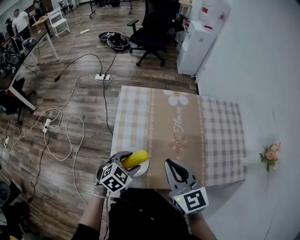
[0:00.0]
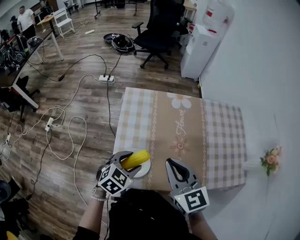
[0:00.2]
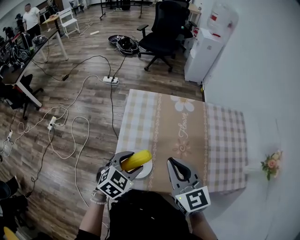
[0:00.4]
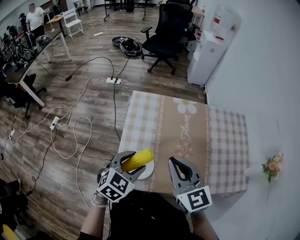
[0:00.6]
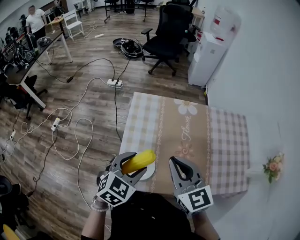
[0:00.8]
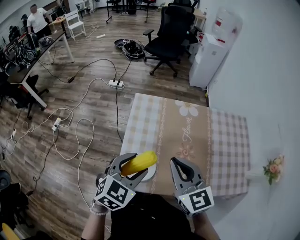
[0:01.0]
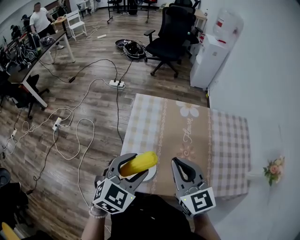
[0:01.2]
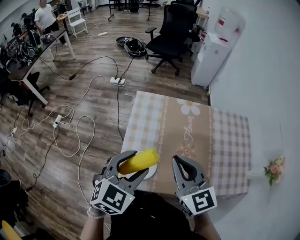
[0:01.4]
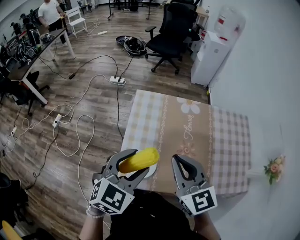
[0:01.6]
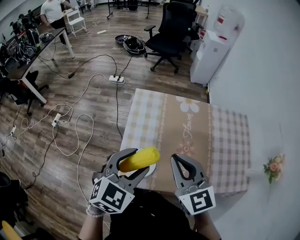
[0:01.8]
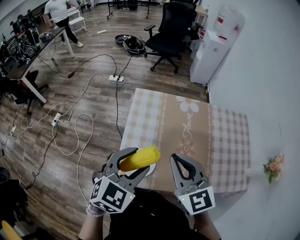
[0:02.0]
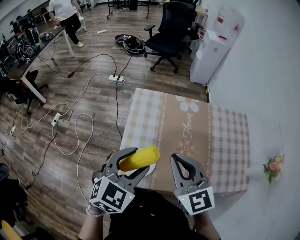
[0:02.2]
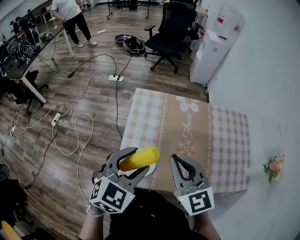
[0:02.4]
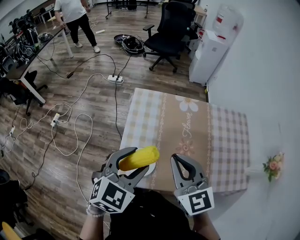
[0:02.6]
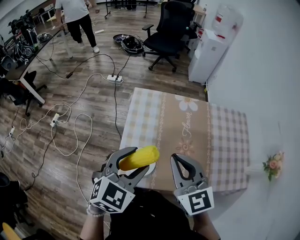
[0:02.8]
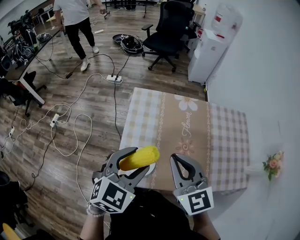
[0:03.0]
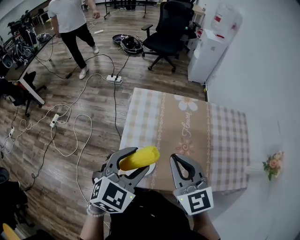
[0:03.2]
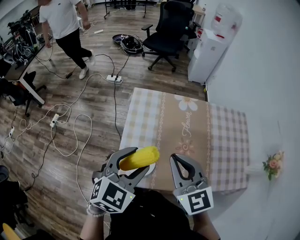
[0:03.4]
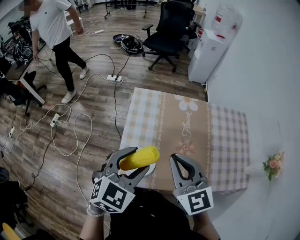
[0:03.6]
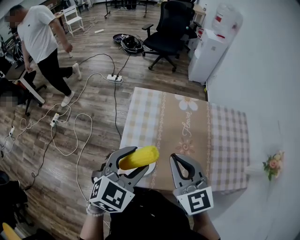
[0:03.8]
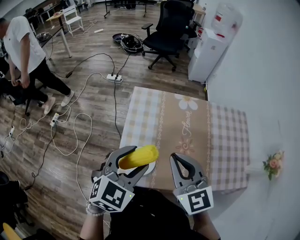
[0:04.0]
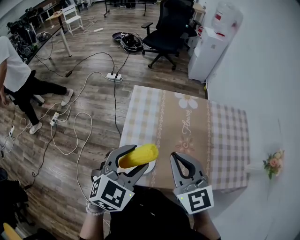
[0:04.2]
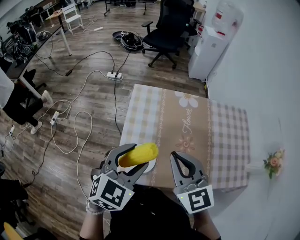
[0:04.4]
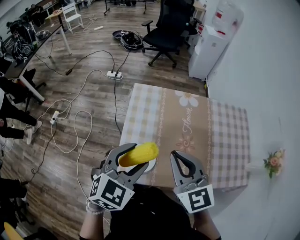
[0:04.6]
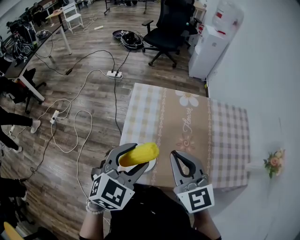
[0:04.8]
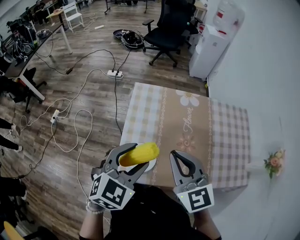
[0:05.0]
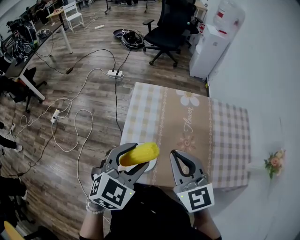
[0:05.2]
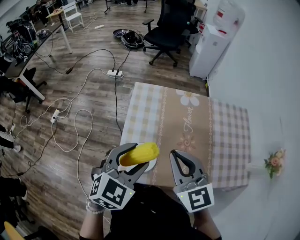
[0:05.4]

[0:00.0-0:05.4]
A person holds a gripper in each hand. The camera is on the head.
0:00.0 to 0:01.4: The left gripper moves upward, about 20 cm, and changes its angle by some 20 degrees. The right gripper ends up roughly 5 cm from where it was.
0:01.4 to 0:02.8: There are only small adjustments of the grippers.
0:02.8 to 0:05.4: Both grippers stay about where they are.

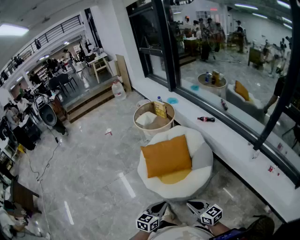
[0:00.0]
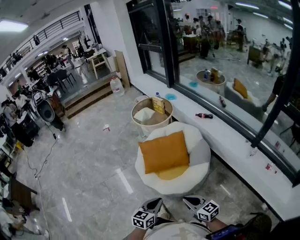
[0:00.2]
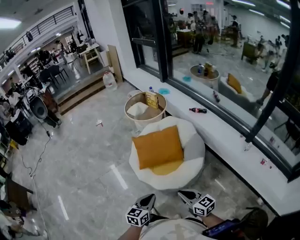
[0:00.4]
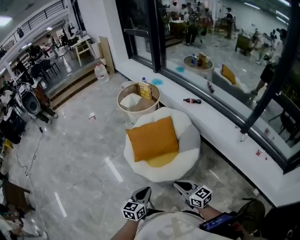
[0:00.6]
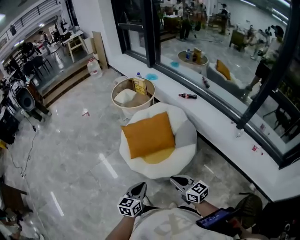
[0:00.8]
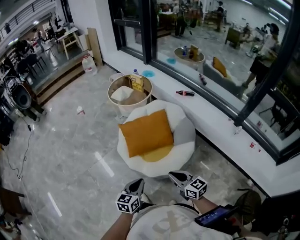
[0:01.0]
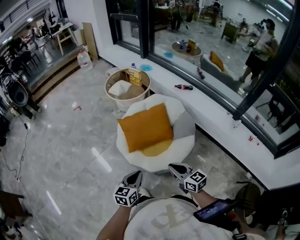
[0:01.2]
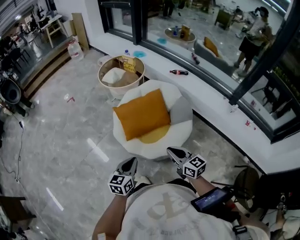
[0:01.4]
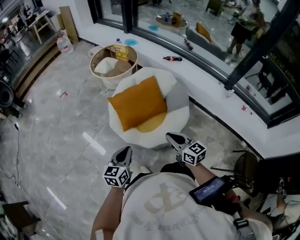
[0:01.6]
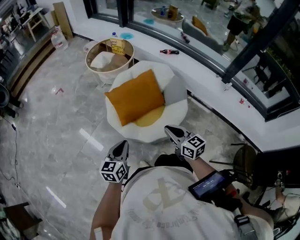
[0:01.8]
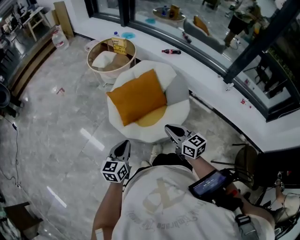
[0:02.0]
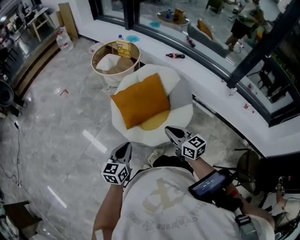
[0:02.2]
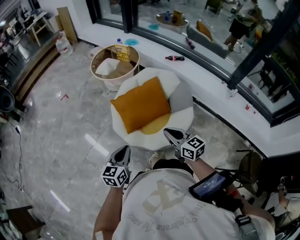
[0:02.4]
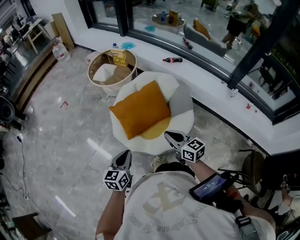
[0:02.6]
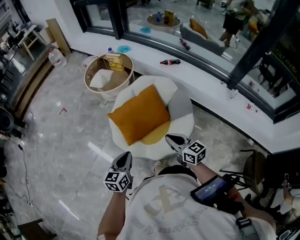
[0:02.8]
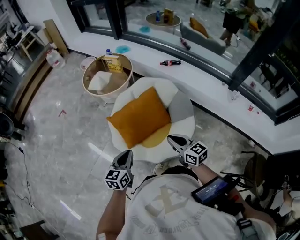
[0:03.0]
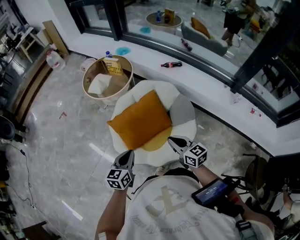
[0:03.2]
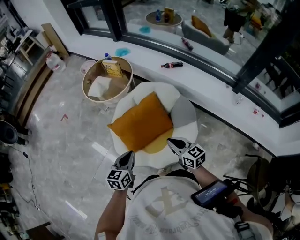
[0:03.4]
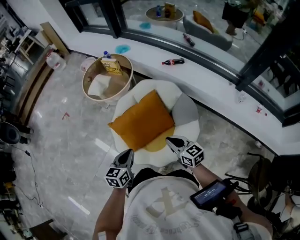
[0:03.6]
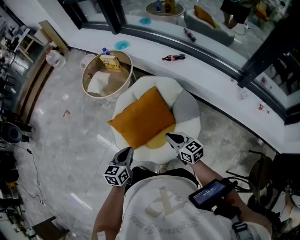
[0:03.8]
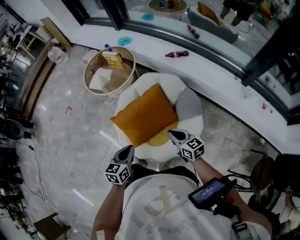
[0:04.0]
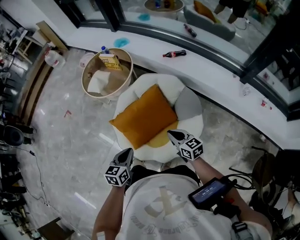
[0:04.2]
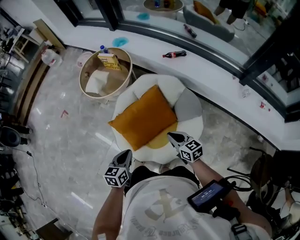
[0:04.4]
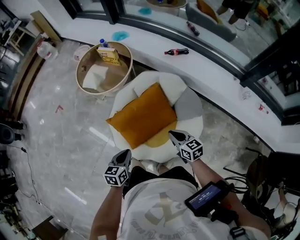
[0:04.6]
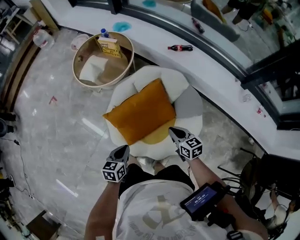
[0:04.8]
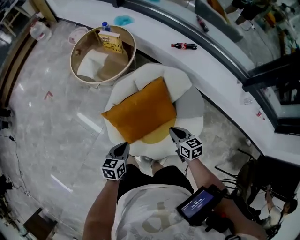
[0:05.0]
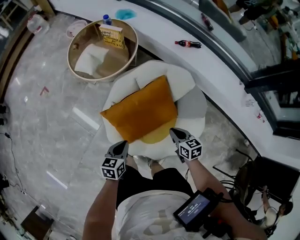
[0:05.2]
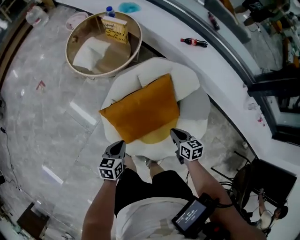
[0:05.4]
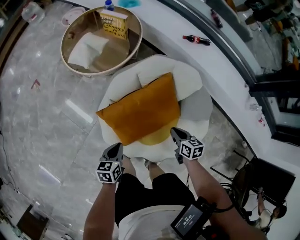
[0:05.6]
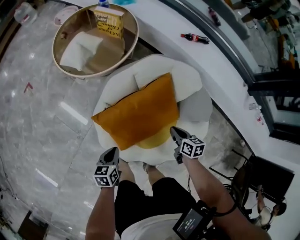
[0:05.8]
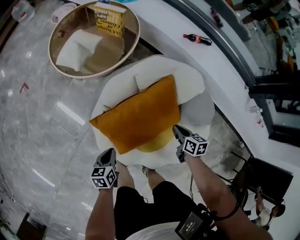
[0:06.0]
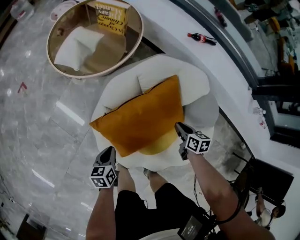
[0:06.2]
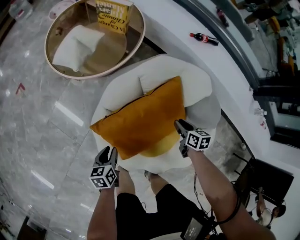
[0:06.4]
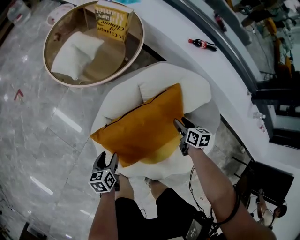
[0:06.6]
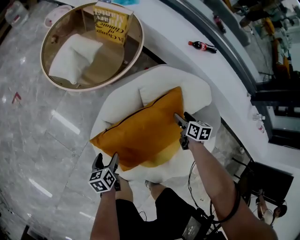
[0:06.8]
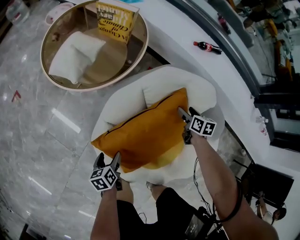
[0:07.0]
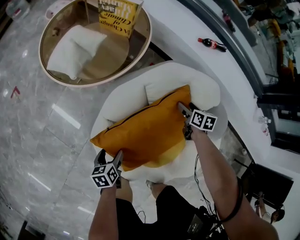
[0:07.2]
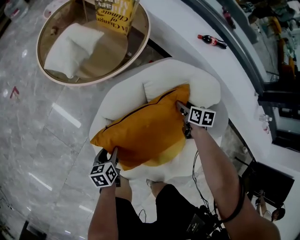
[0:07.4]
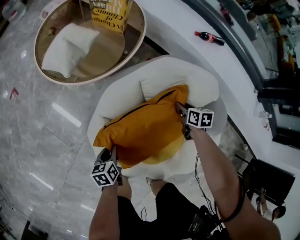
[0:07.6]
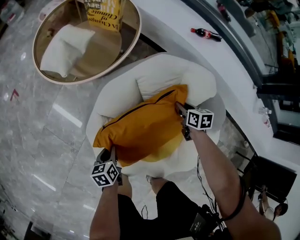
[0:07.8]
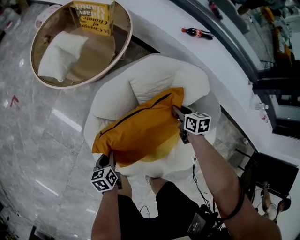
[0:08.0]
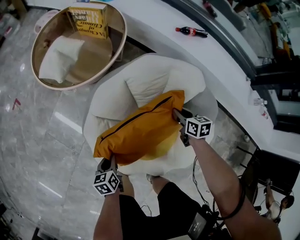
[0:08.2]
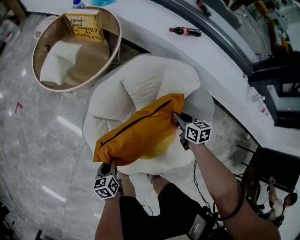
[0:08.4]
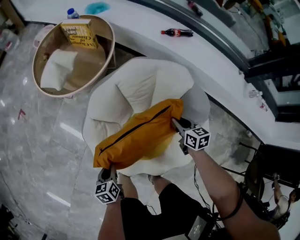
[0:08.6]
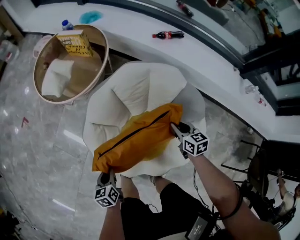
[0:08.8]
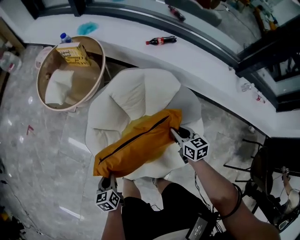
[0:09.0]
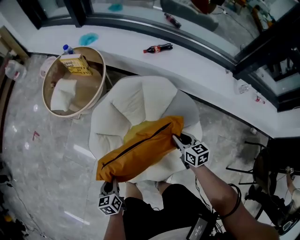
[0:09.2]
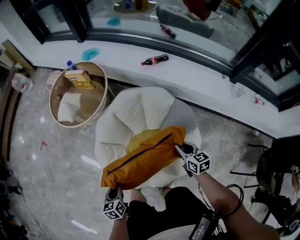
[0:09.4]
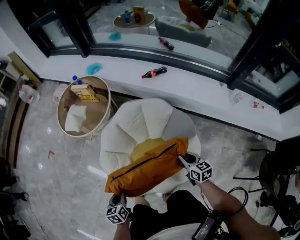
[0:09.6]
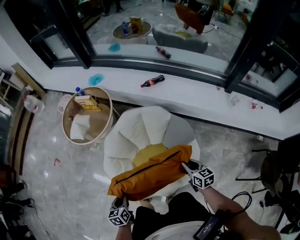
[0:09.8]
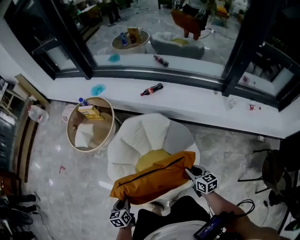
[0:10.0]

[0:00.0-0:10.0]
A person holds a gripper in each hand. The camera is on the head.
0:00.0 to 0:01.4: The right gripper is displaced forward and to the left by some 20 cm. Meanwhile the left gripper moves to the left and forward, approximately 20 cm.
0:01.4 to 0:02.8: The two grippers go some 15 cm forward.
0:02.8 to 0:04.2: The right gripper moves forward and downward, roughly 20 cm, while the left gripper travels forward by approximately 15 cm.
0:04.2 to 0:05.8: The left gripper shifts approximately 35 cm downward, to the left and forward, and changes its angle by some 20 degrees, while the right gripper is displaced downward and forward by some 30 cm, and swivels roughly 30 degrees.
0:05.8 to 0:07.2: The right gripper heads forward and downward, covering about 25 cm, and opens up. The left gripper travels downward and forward by approximately 20 cm, and opens up.
0:07.2 to 0:08.6: The right gripper travels backward and upward by about 20 cm, and closes up; the left gripper shifts about 15 cm upward, backward and to the right, and closes.
0:08.6 to 0:10.0: The left gripper travels upward by roughly 25 cm. Meanwhile the right gripper travels backward, upward and to the right by approximately 30 cm.

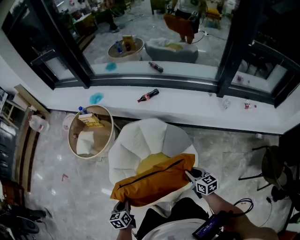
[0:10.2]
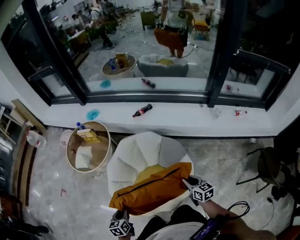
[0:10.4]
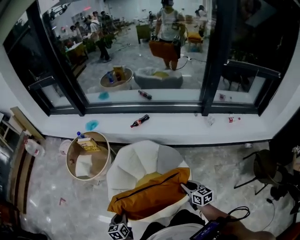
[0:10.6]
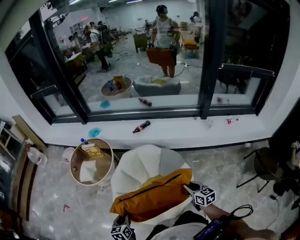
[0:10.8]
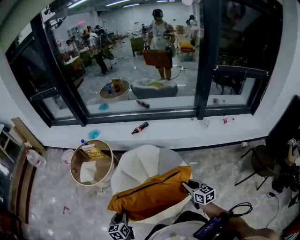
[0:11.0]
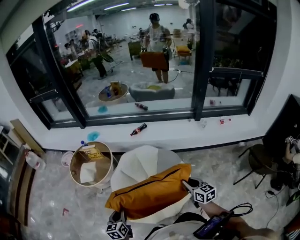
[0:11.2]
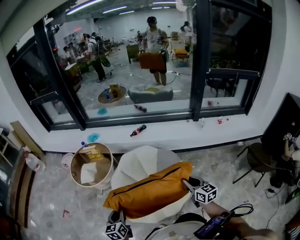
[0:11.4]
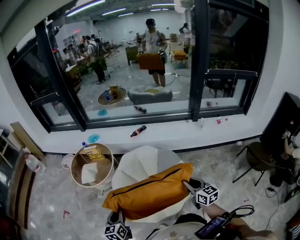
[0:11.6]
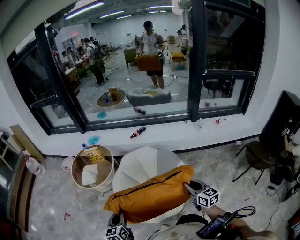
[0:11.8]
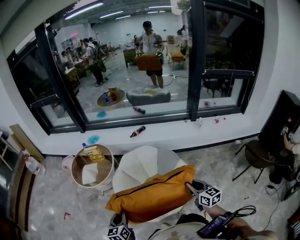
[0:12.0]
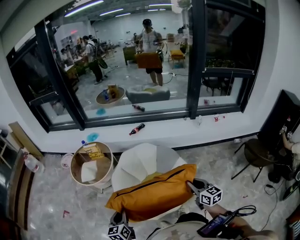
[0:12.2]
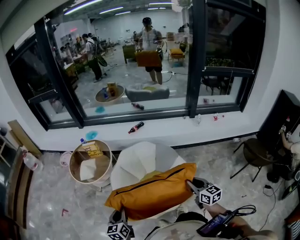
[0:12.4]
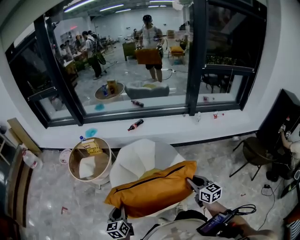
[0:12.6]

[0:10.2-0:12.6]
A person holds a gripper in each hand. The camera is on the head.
0:10.2 to 0:11.4: The right gripper goes approximately 20 cm upward and backward, and swivels some 20 degrees; the left gripper shifts approximately 20 cm upward and to the left, and changes its angle by some 20 degrees.
0:11.4 to 0:12.6: The right gripper shifts roughly 5 cm backward.

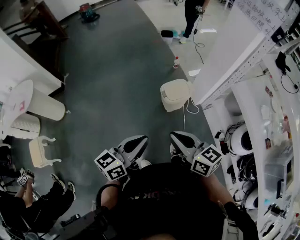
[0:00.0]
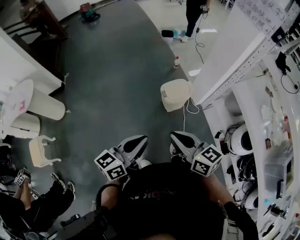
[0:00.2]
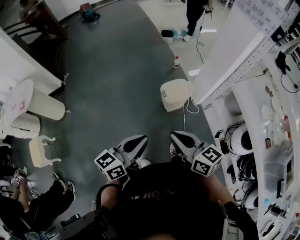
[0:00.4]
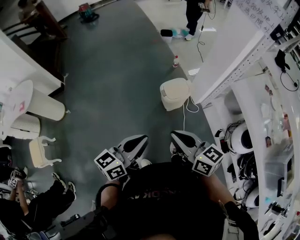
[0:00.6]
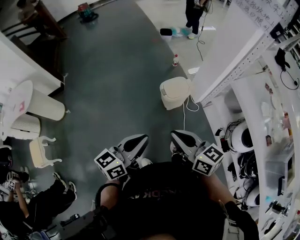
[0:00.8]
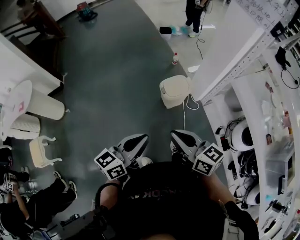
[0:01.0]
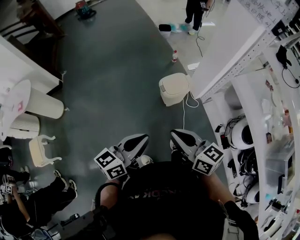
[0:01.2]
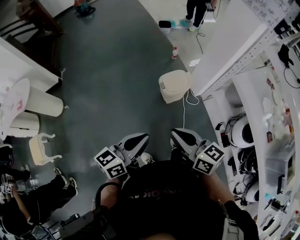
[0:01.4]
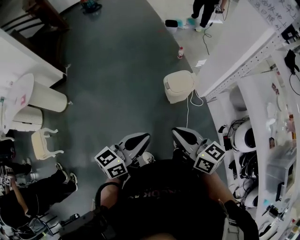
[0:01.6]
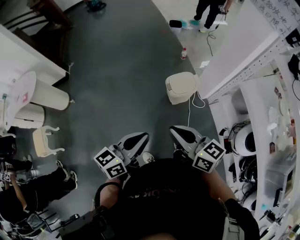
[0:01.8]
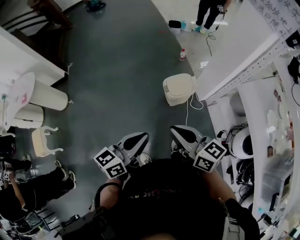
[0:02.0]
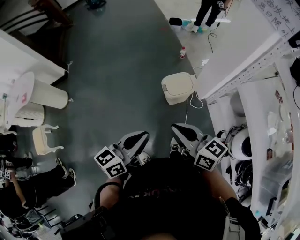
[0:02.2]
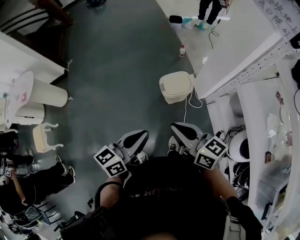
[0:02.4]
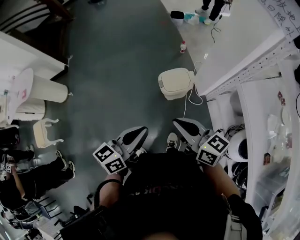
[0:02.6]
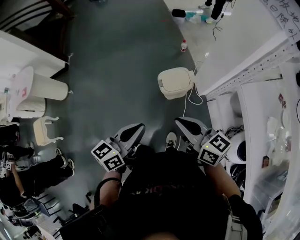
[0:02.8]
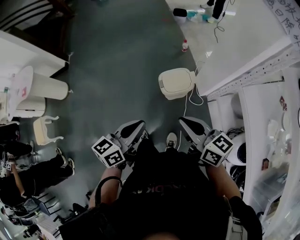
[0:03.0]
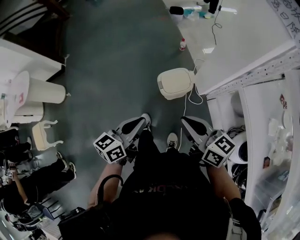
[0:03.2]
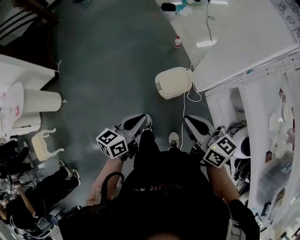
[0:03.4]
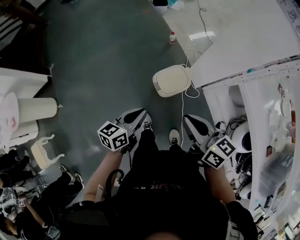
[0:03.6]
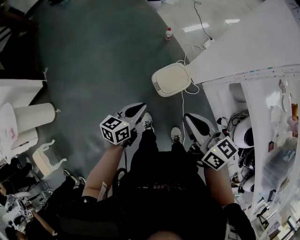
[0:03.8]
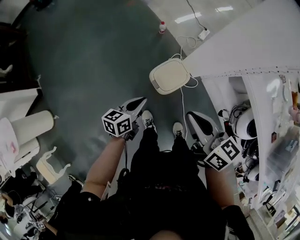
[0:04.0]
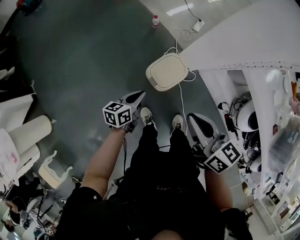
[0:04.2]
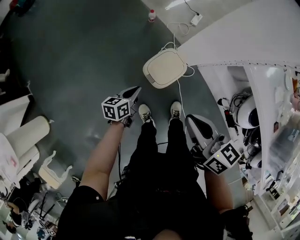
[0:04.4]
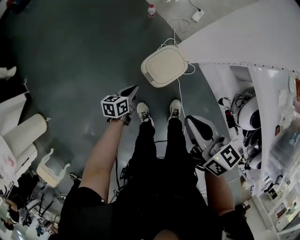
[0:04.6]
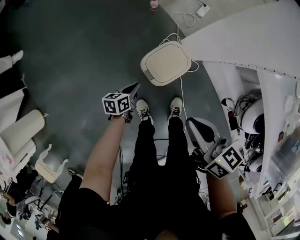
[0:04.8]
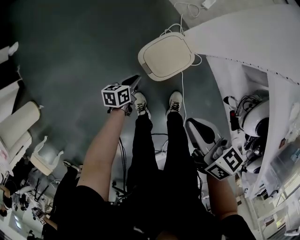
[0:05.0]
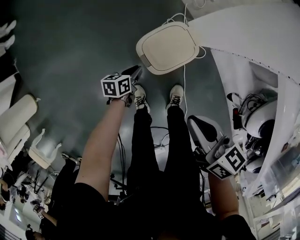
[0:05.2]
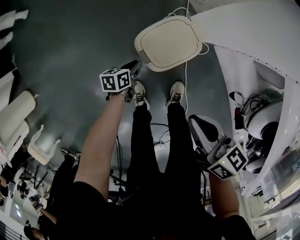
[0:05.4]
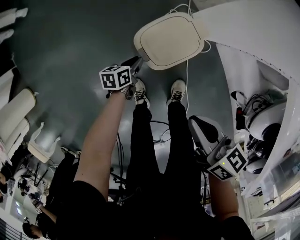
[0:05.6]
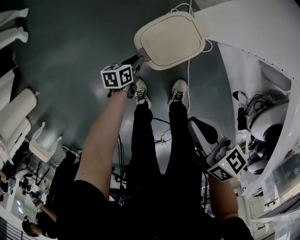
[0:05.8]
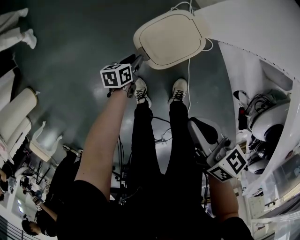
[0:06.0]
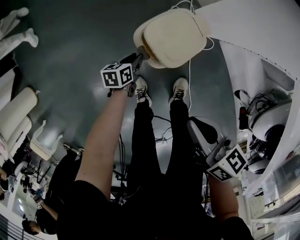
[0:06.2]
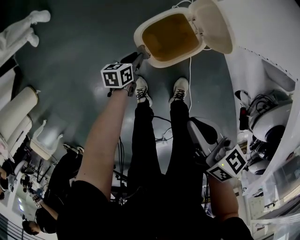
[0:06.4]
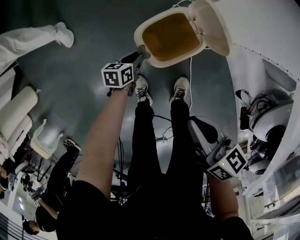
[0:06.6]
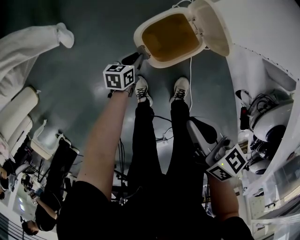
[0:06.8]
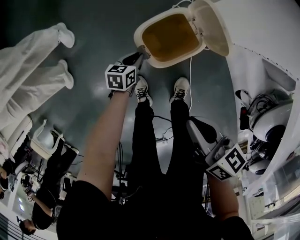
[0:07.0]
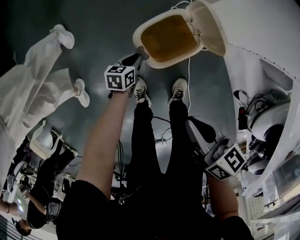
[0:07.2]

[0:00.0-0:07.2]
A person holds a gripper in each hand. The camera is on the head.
0:00.0 to 0:01.4: There are only small adjustments of the grippers.
0:01.4 to 0:02.8: Both grippers travel together to the right and forward, approximately 20 cm.
0:02.8 to 0:04.4: The left gripper moves downward, approximately 30 cm, and turns by some 30 degrees, while the right gripper shifts by some 20 cm, and turns by some 40 degrees.
0:04.4 to 0:05.8: The grippers both shift downward by about 25 cm. The left gripper opens up.
0:05.8 to 0:07.2: The grippers move only a little.
